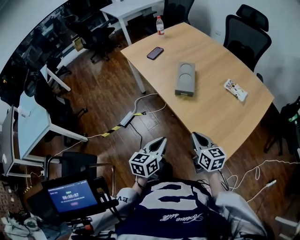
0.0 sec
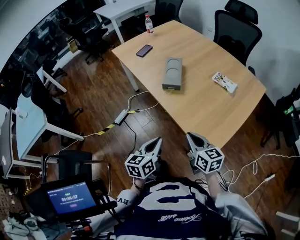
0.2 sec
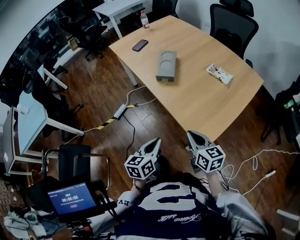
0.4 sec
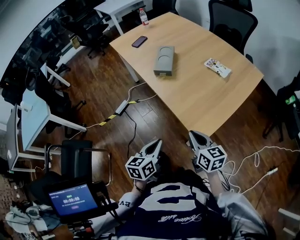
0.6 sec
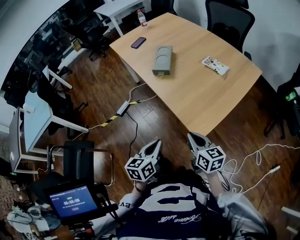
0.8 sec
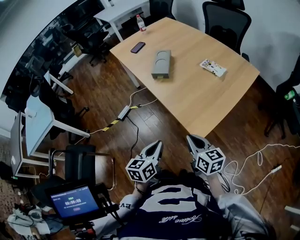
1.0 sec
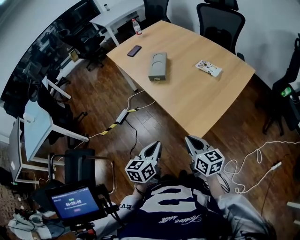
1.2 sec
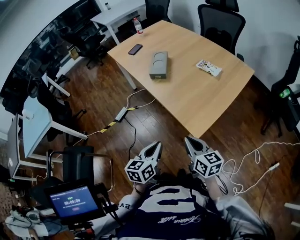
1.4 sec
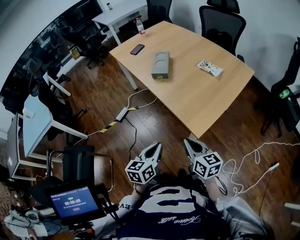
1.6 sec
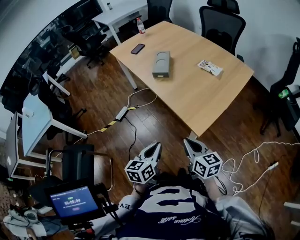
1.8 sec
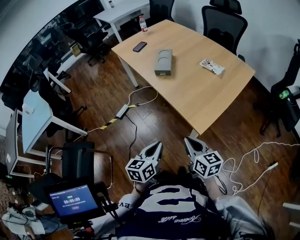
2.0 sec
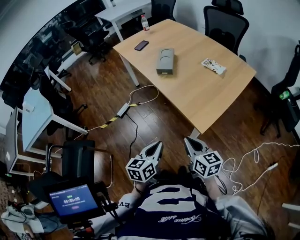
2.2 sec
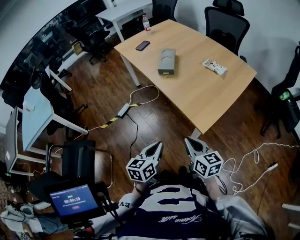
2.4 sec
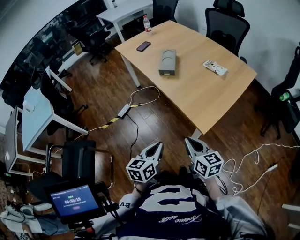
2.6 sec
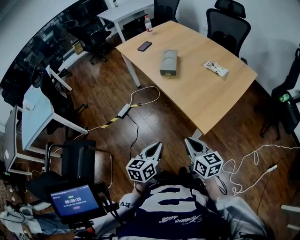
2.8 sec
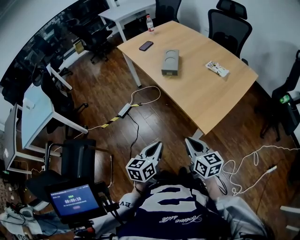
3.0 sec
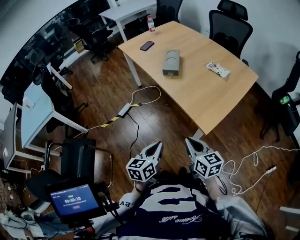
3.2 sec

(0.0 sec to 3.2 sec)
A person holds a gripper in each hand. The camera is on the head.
0.0 sec - 1.6 sec: The grippers both shift backward and to the right by some 25 cm.
1.6 sec - 3.2 sec: The grippers both shift to the left by roughly 5 cm.

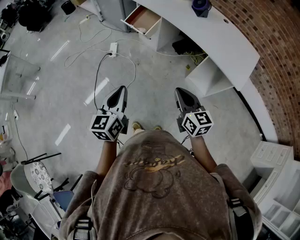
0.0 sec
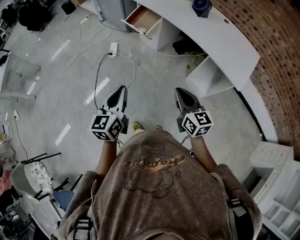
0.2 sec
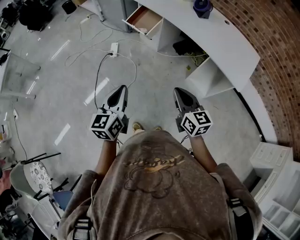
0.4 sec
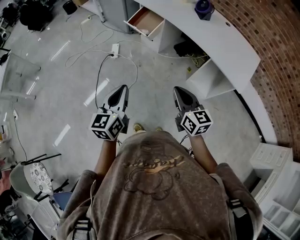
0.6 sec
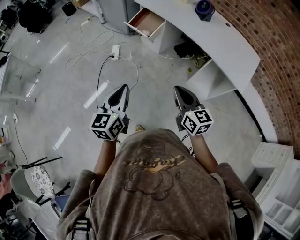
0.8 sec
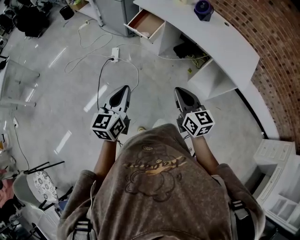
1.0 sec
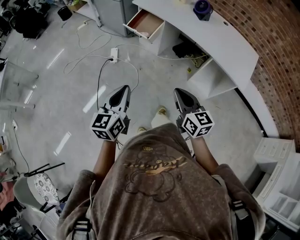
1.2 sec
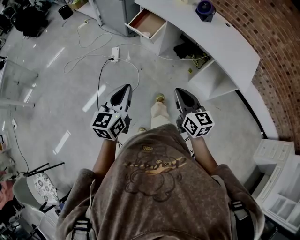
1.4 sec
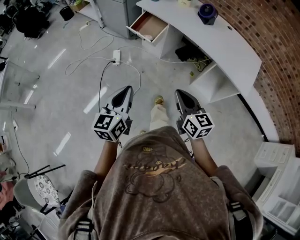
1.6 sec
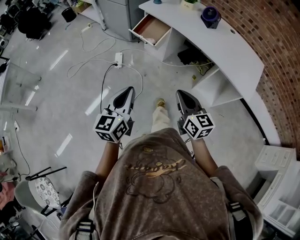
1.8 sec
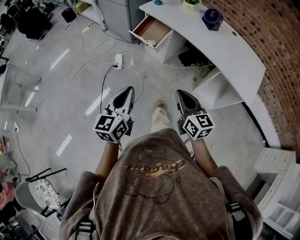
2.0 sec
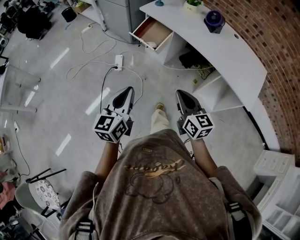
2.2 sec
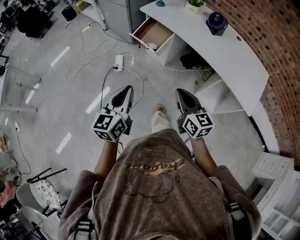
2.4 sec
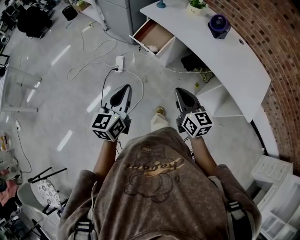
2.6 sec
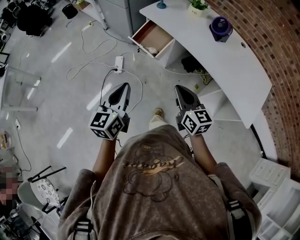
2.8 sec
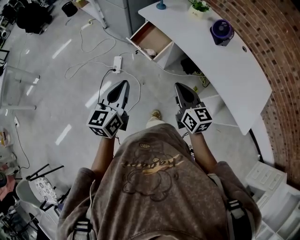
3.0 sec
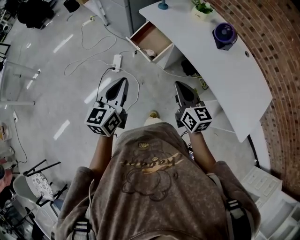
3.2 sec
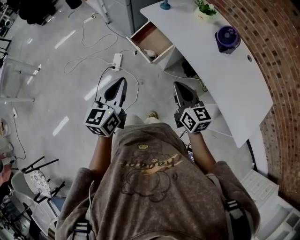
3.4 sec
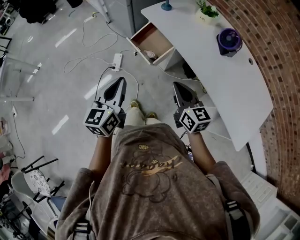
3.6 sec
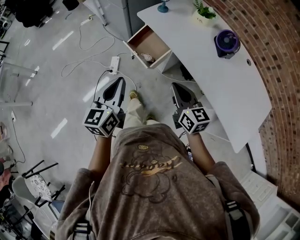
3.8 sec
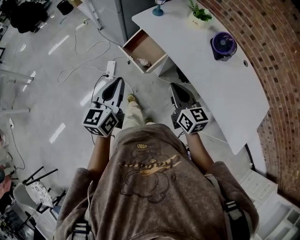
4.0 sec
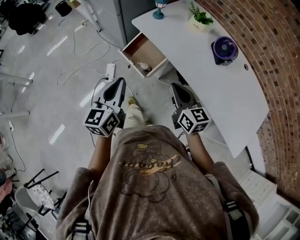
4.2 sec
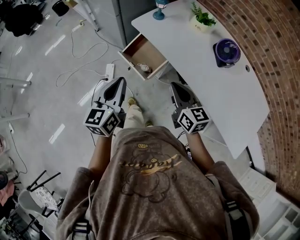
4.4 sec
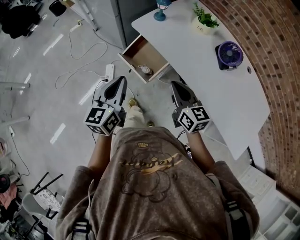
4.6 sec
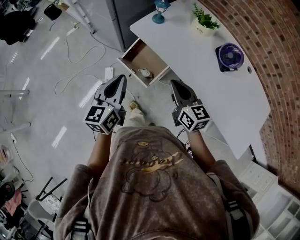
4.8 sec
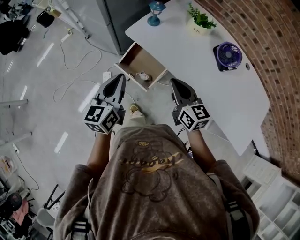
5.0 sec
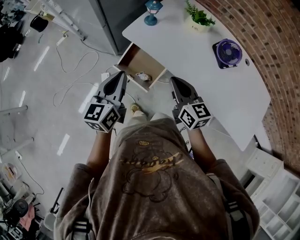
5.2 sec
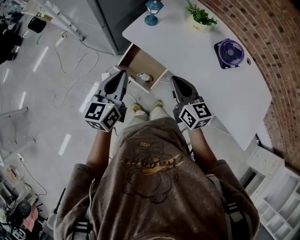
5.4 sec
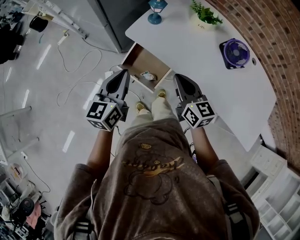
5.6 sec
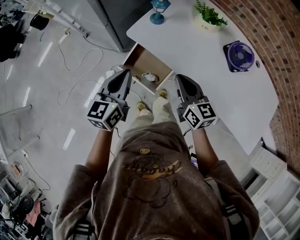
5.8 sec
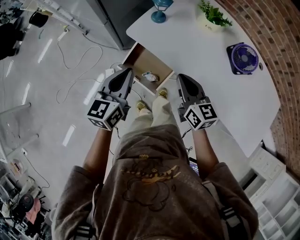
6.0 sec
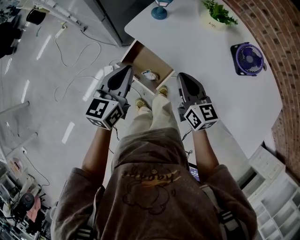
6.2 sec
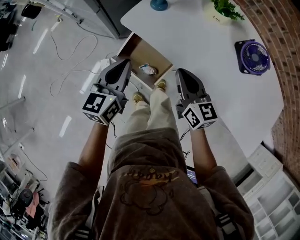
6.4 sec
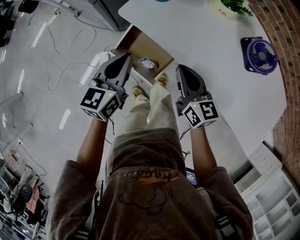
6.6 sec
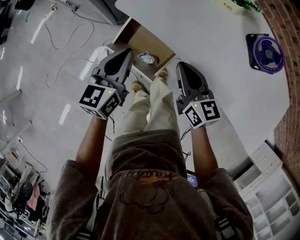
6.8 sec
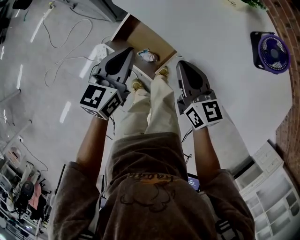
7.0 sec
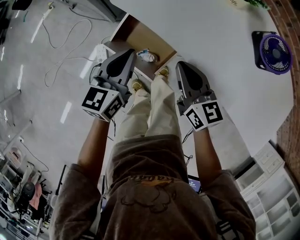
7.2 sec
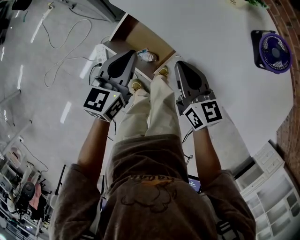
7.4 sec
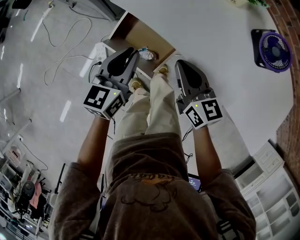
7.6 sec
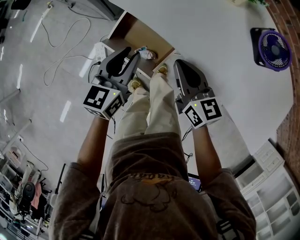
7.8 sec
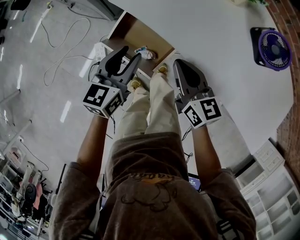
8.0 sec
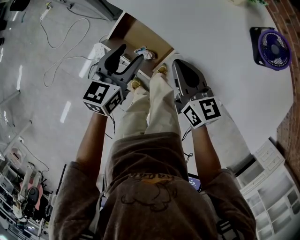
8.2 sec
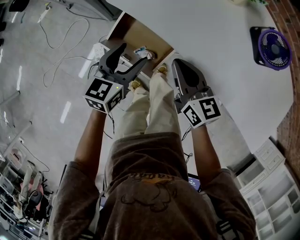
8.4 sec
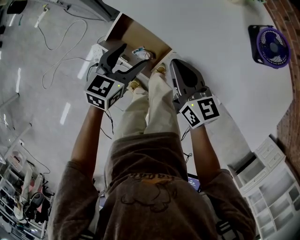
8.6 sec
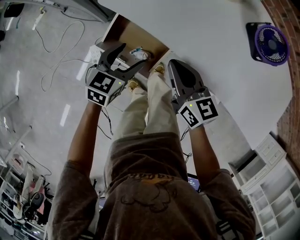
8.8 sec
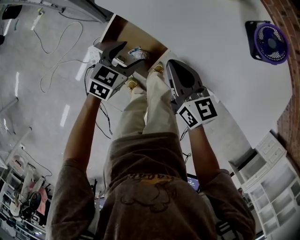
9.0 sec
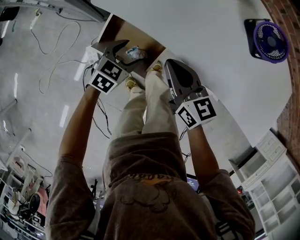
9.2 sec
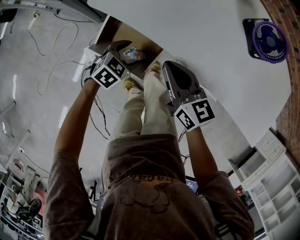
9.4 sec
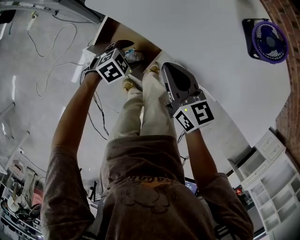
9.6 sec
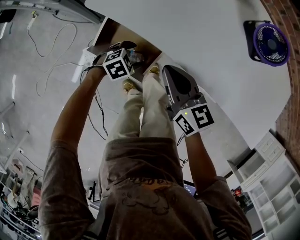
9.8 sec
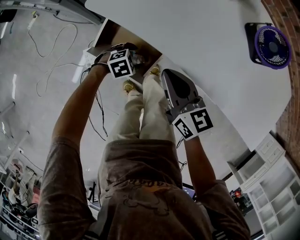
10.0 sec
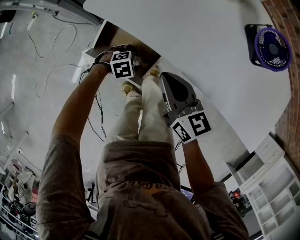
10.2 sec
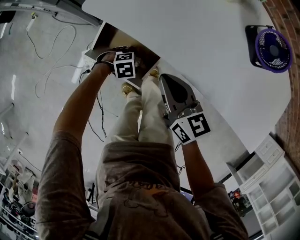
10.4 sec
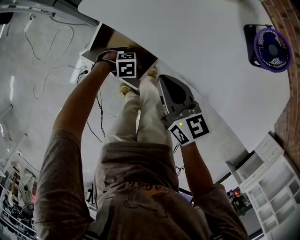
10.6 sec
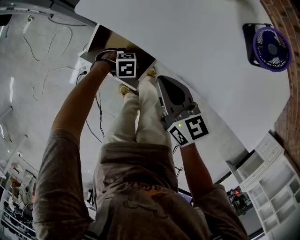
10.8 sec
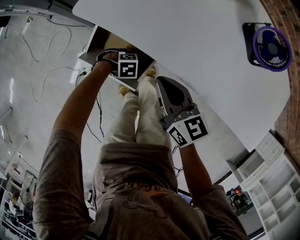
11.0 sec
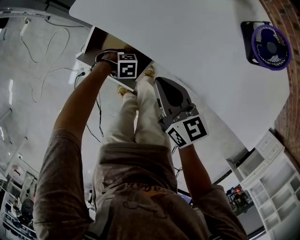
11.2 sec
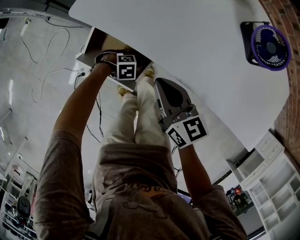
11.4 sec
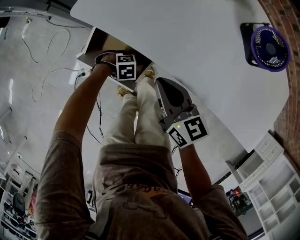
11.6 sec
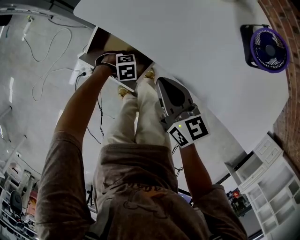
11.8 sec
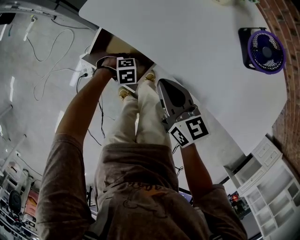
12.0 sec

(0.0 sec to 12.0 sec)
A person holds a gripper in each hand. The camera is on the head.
0.0 sec - 1.6 sec: The right gripper heads to the left, covering approximately 10 cm, while the left gripper travels to the left and forward by roughly 10 cm.
1.6 sec - 3.0 sec: Both grippers move forward, some 25 cm.
3.0 sec - 4.4 sec: Both grippers move forward, approximately 20 cm.
4.4 sec - 6.0 sec: The grippers both shift forward by about 20 cm.
6.0 sec - 7.6 sec: The grippers both shift downward by some 10 cm.
7.6 sec - 9.0 sec: The left gripper shifts some 10 cm downward, rotates some 30 degrees, and opens its fingers.
9.0 sec - 10.4 sec: The left gripper shifts some 20 cm downward, and angles its fingers downward, by roughly 30 degrees.
10.4 sec - 12.0 sec: The left gripper closes its fingers.

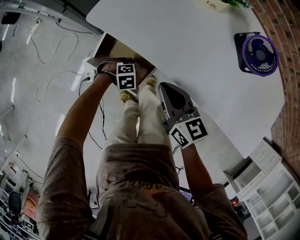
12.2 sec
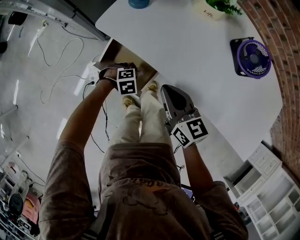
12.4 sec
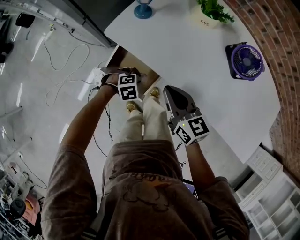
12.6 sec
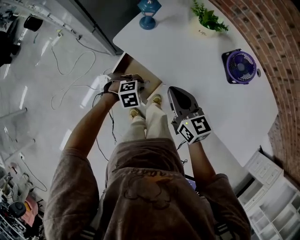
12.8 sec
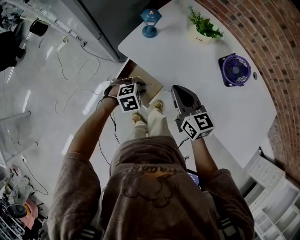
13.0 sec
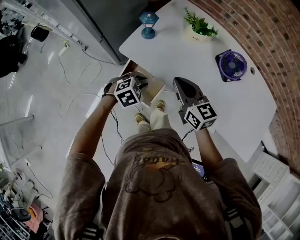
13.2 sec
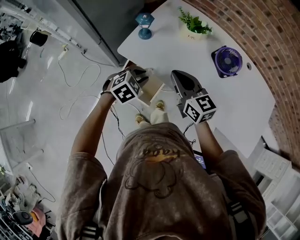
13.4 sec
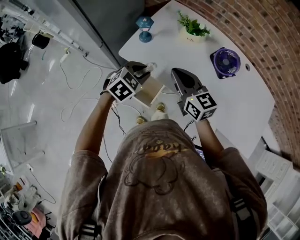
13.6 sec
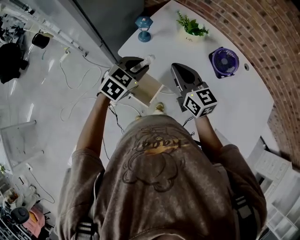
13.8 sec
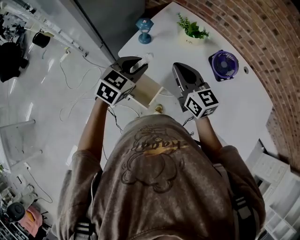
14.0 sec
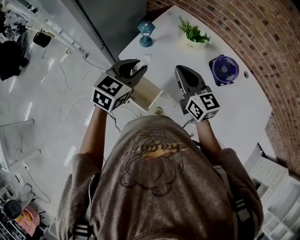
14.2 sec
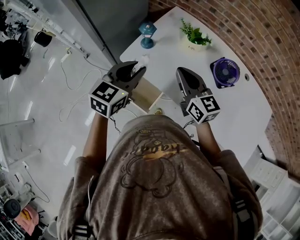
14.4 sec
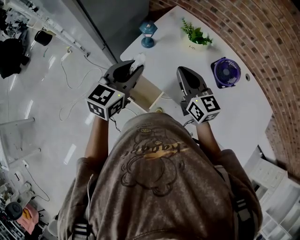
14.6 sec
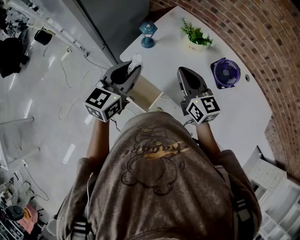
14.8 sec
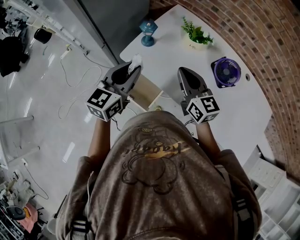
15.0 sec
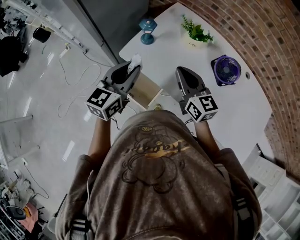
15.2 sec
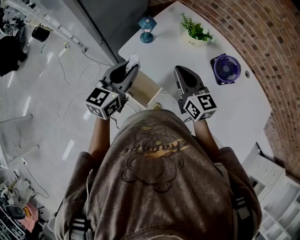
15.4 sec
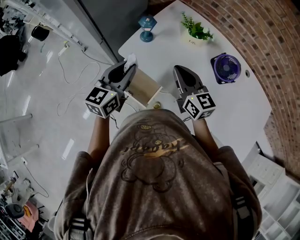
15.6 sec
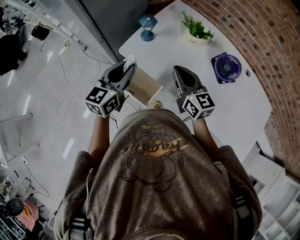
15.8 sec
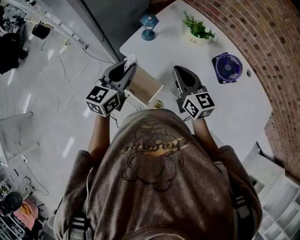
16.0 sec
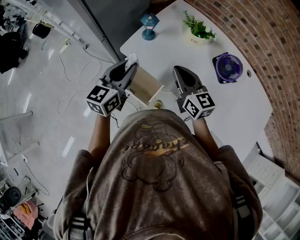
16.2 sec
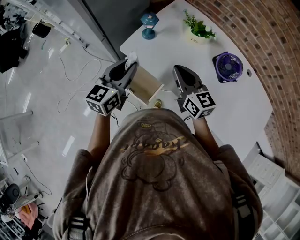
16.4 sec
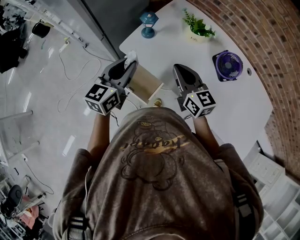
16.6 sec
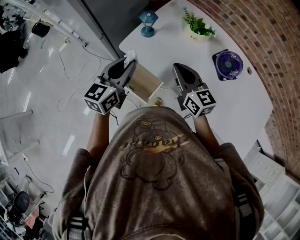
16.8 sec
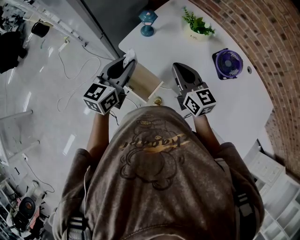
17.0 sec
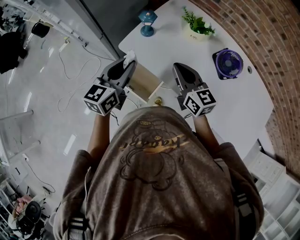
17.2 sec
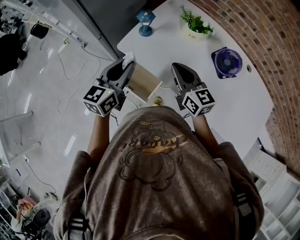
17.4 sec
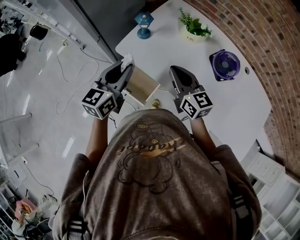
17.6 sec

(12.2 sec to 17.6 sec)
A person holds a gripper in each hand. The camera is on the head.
12.2 sec - 13.6 sec: The left gripper goes approximately 40 cm upward, and turns by roughly 40 degrees; the right gripper moves upward, roughly 20 cm.
13.6 sec - 15.0 sec: The left gripper travels upward and to the left by about 15 cm, and tilts its fingers roughly 40 degrees upward.
15.0 sec - 17.6 sec: There are only small adjustments of the grippers.

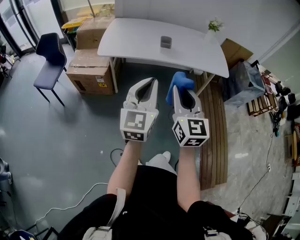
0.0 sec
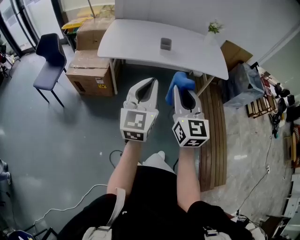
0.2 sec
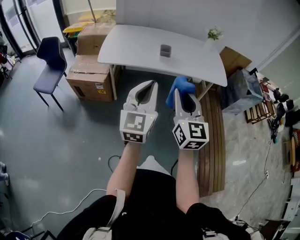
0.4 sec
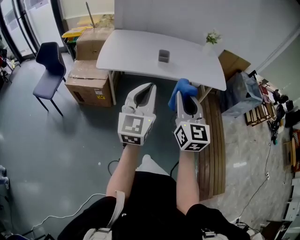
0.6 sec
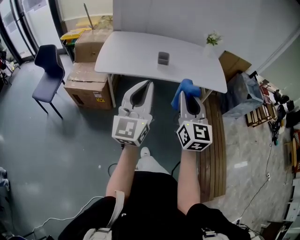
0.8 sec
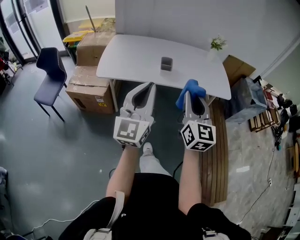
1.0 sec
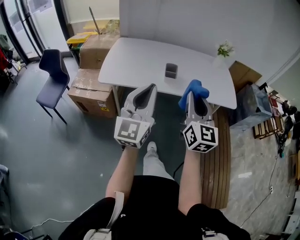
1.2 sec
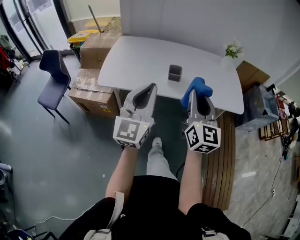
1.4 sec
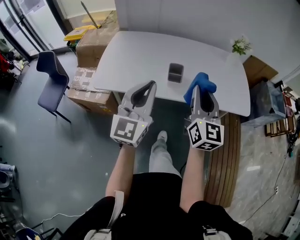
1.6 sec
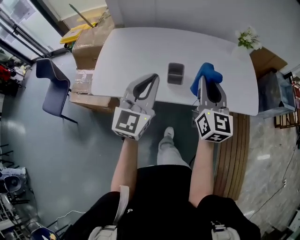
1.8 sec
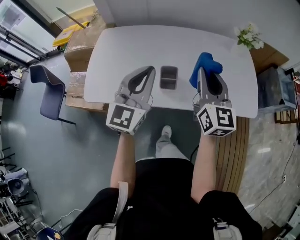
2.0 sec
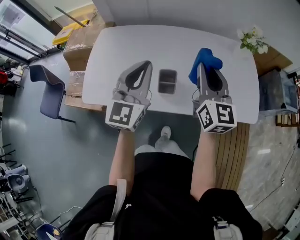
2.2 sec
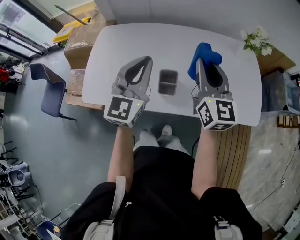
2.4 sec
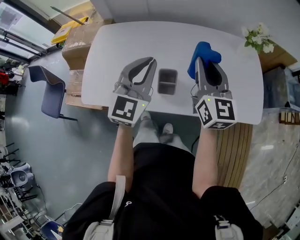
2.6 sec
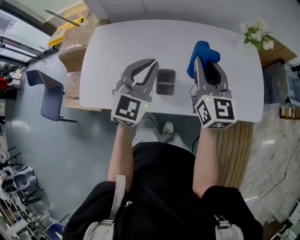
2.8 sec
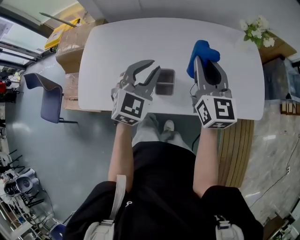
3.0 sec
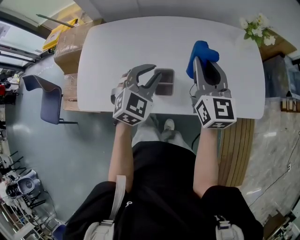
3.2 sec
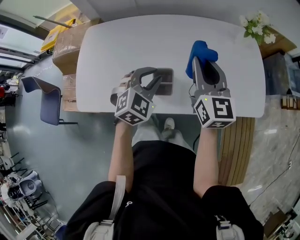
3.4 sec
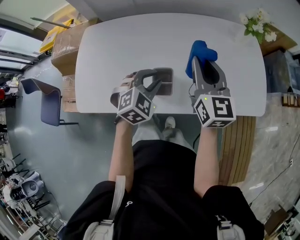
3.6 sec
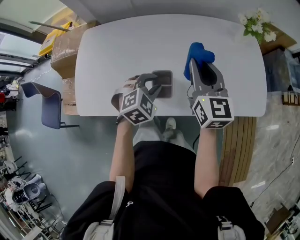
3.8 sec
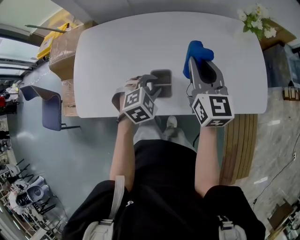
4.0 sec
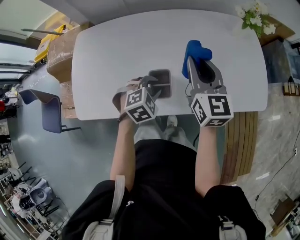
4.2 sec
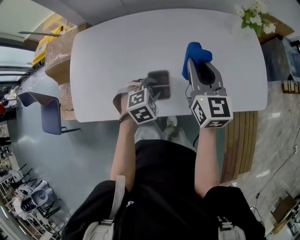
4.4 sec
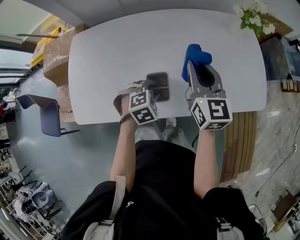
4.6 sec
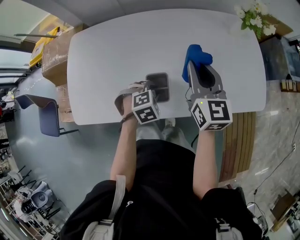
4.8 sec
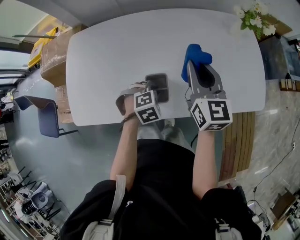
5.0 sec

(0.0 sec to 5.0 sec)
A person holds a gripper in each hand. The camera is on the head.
0.0 sec - 1.6 sec: Both grippers travel together forward, approximately 30 cm.
1.6 sec - 3.4 sec: The left gripper travels forward and downward by about 35 cm, points its fingers approximately 40 degrees further downward, and opens up. The right gripper goes approximately 25 cm forward.
3.4 sec - 5.0 sec: The left gripper moves downward, roughly 15 cm, and tips its fingers downward by some 30 degrees; the right gripper ends up about 5 cm from where it was.
